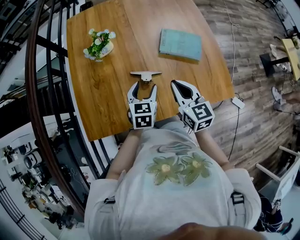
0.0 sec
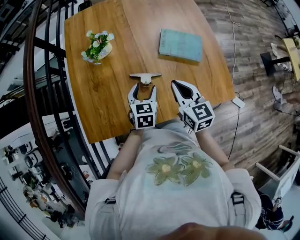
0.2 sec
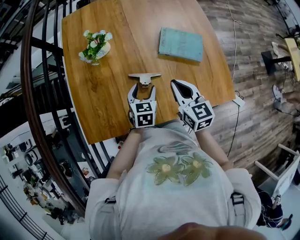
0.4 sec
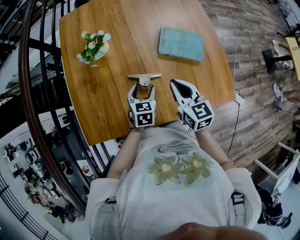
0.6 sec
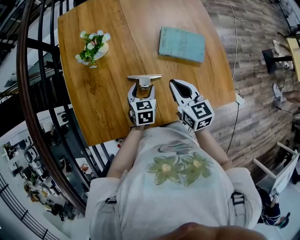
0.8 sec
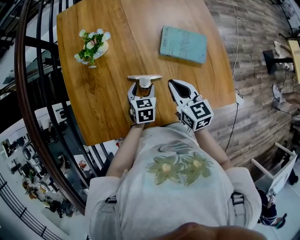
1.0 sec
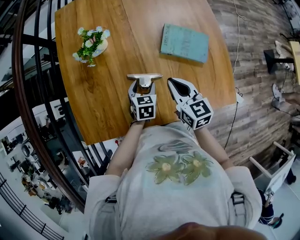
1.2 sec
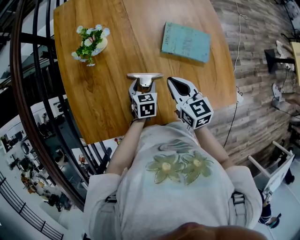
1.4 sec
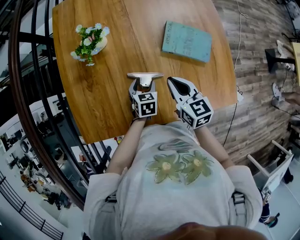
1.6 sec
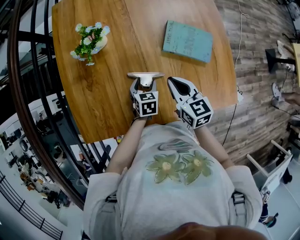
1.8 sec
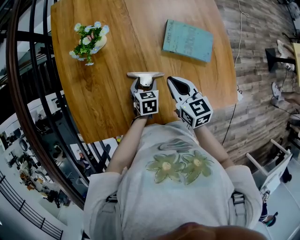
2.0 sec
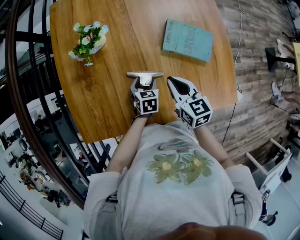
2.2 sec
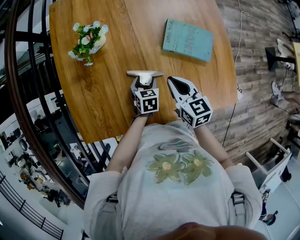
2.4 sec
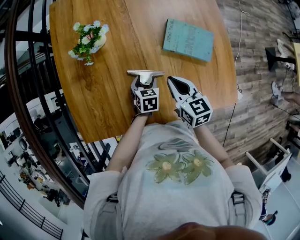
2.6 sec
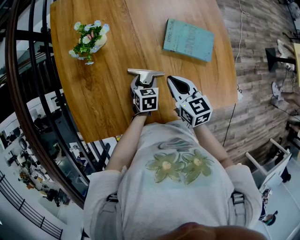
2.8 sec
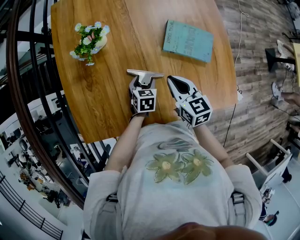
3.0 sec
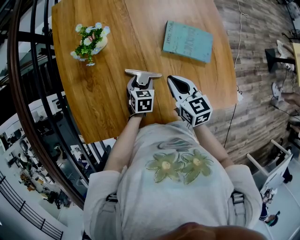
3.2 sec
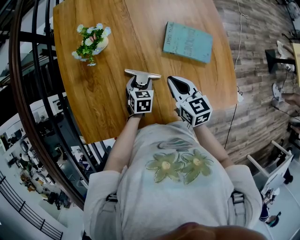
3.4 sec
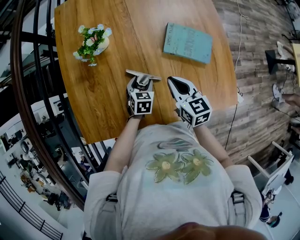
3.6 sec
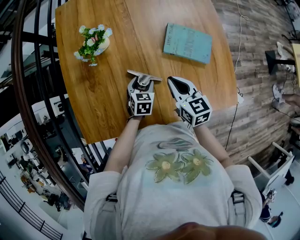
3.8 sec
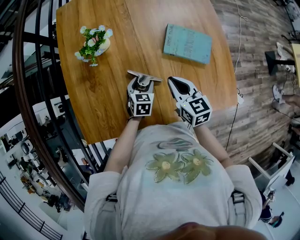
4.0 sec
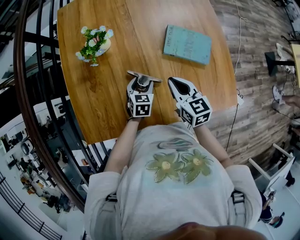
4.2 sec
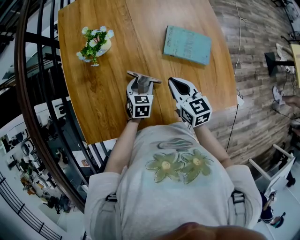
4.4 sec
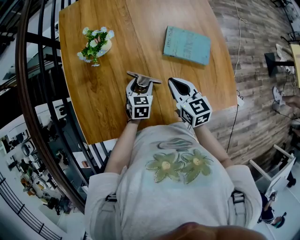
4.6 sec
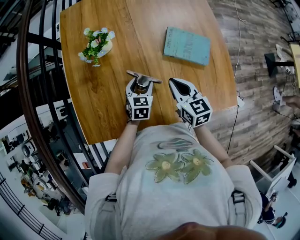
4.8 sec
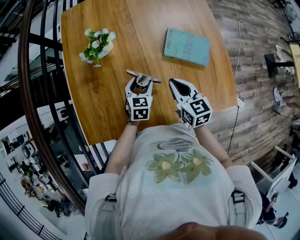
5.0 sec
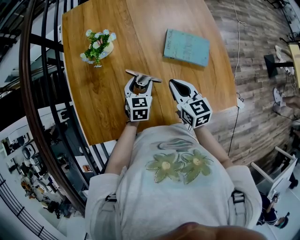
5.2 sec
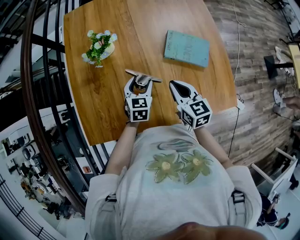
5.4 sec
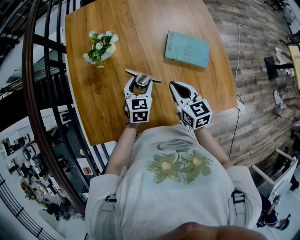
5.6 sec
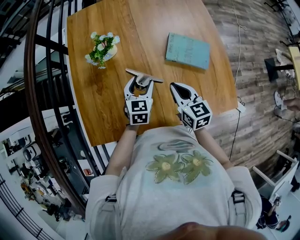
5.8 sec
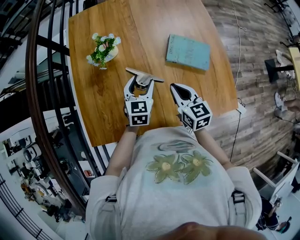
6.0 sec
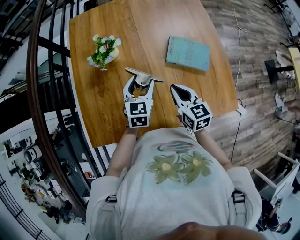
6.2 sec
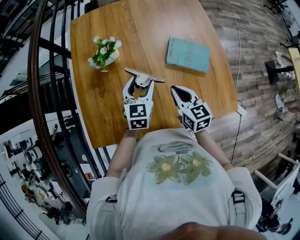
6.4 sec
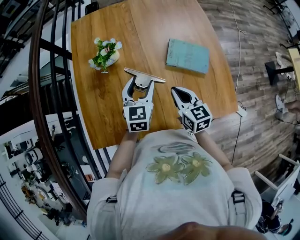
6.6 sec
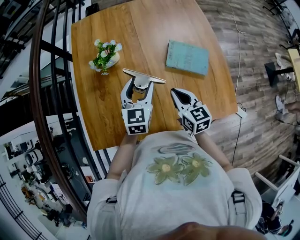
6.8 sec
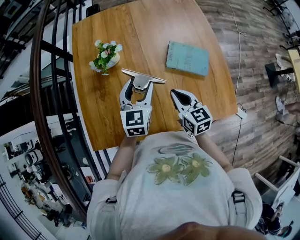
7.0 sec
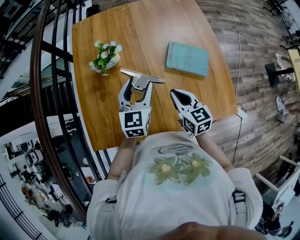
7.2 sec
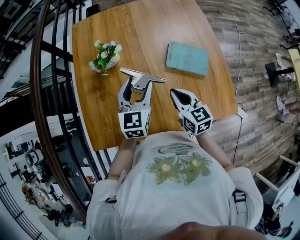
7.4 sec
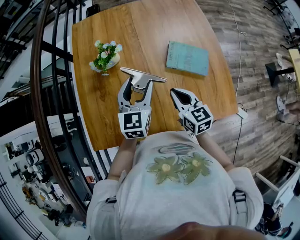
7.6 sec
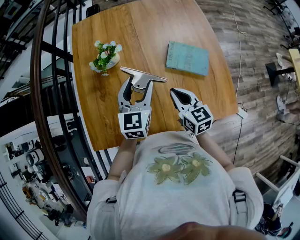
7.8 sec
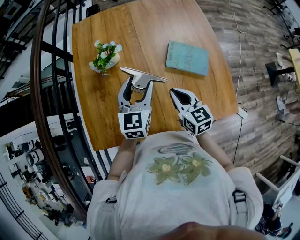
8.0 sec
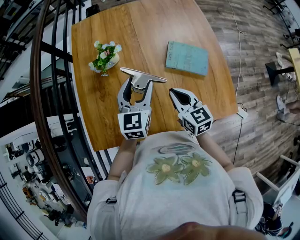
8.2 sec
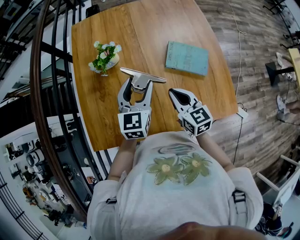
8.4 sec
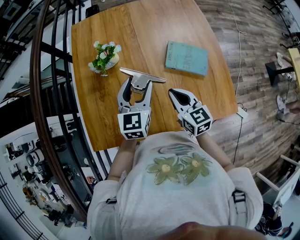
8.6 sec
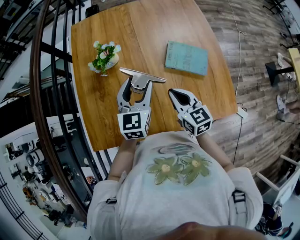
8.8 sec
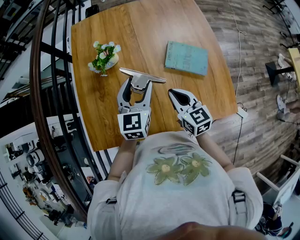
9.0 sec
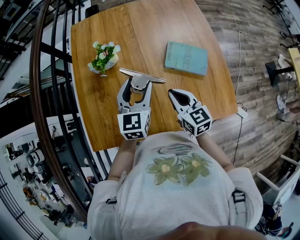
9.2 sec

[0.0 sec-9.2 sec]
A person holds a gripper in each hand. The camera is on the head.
0.0 sec to 1.6 sec: The right gripper moves forward and downward, approximately 10 cm. The left gripper is displaced downward by approximately 15 cm.
1.6 sec to 3.0 sec: The grippers stay close to where they were, moving slightly.
3.0 sec to 4.6 sec: The left gripper is displaced upward by about 5 cm.
4.6 sec to 6.2 sec: The left gripper moves upward, some 15 cm.
6.2 sec to 7.6 sec: The left gripper heads upward, covering approximately 10 cm.
7.6 sec to 9.2 sec: The two grippers keep their place.

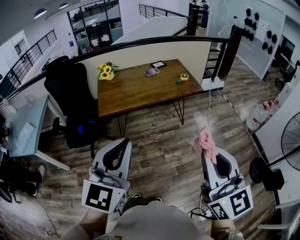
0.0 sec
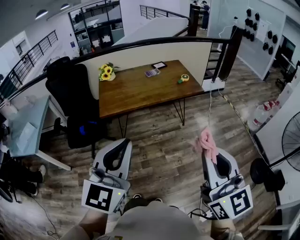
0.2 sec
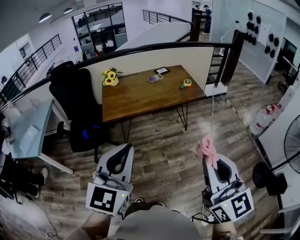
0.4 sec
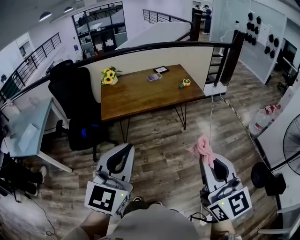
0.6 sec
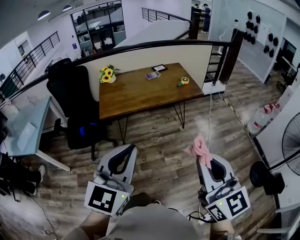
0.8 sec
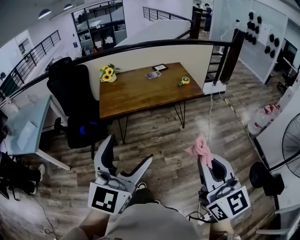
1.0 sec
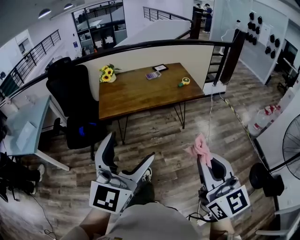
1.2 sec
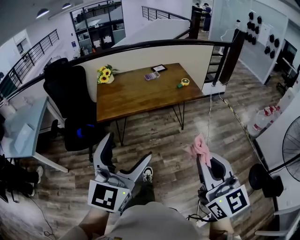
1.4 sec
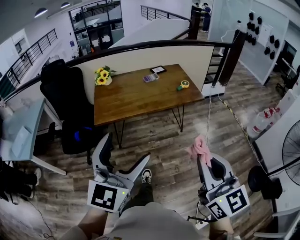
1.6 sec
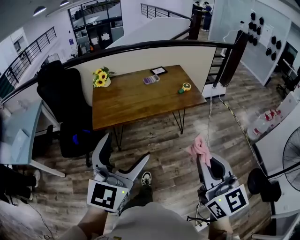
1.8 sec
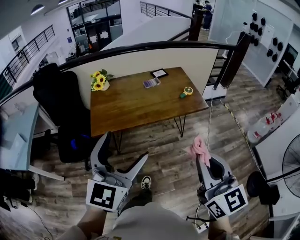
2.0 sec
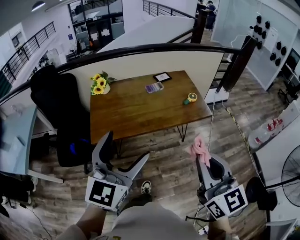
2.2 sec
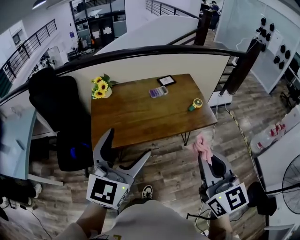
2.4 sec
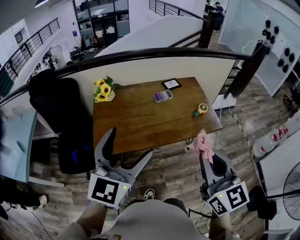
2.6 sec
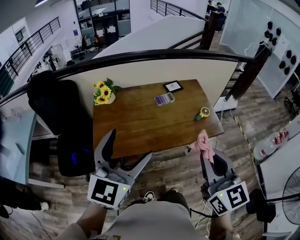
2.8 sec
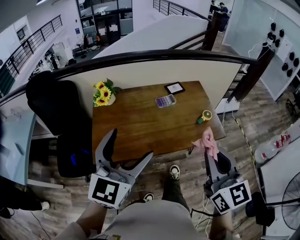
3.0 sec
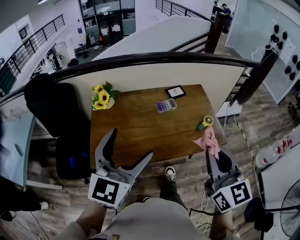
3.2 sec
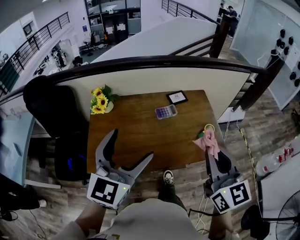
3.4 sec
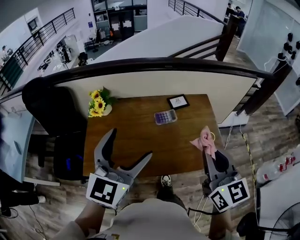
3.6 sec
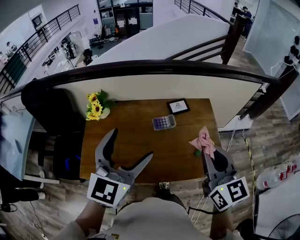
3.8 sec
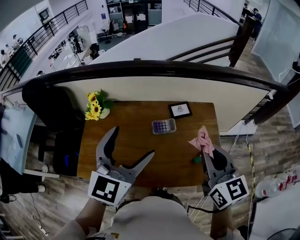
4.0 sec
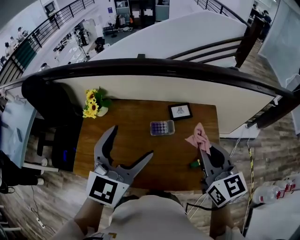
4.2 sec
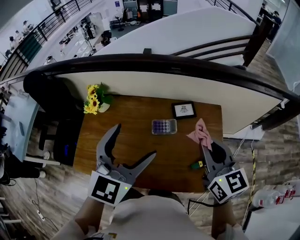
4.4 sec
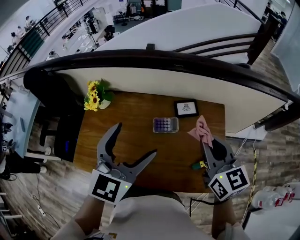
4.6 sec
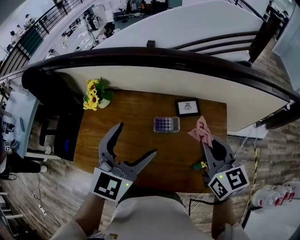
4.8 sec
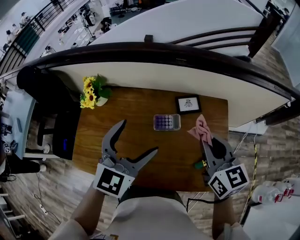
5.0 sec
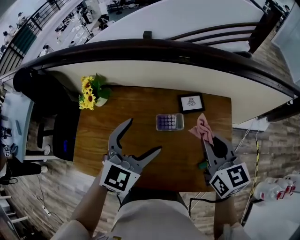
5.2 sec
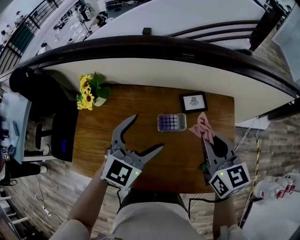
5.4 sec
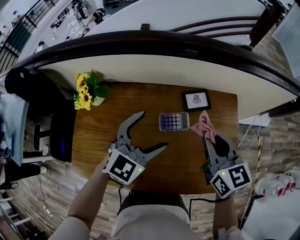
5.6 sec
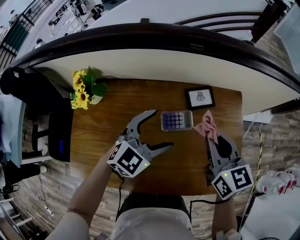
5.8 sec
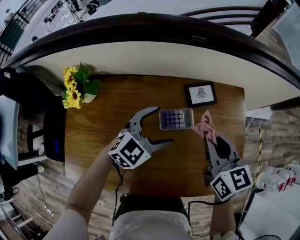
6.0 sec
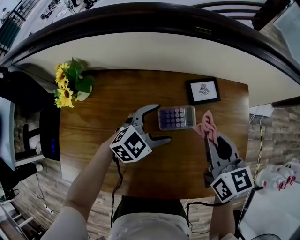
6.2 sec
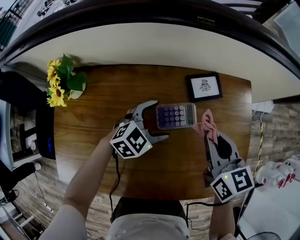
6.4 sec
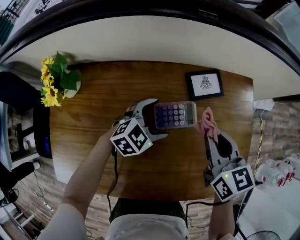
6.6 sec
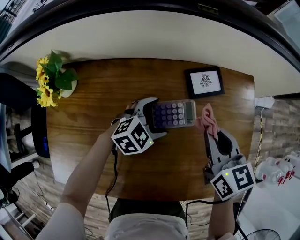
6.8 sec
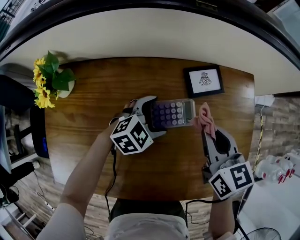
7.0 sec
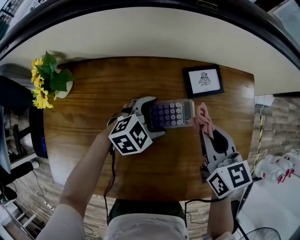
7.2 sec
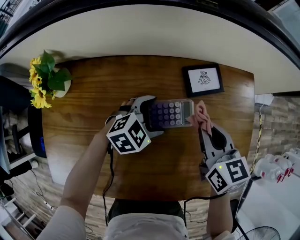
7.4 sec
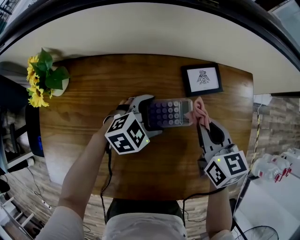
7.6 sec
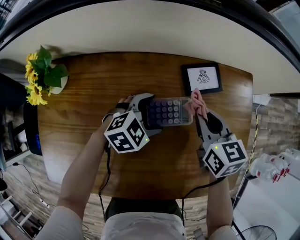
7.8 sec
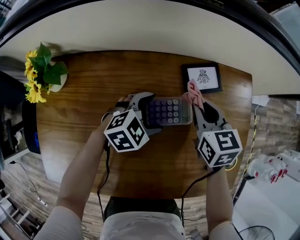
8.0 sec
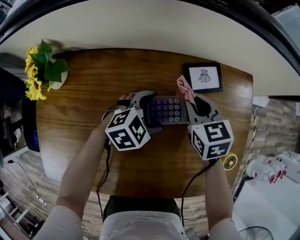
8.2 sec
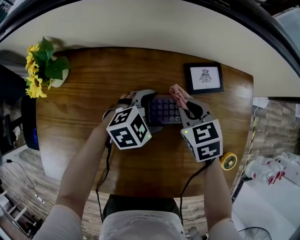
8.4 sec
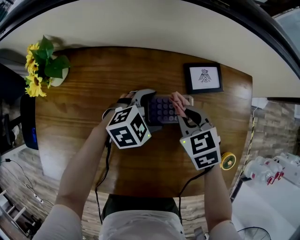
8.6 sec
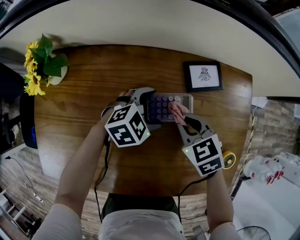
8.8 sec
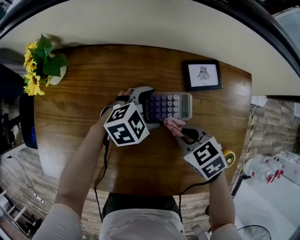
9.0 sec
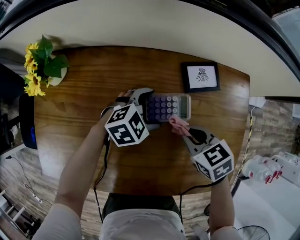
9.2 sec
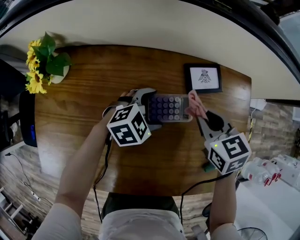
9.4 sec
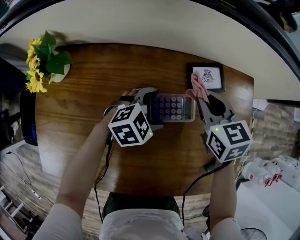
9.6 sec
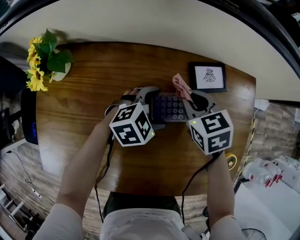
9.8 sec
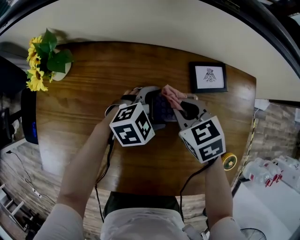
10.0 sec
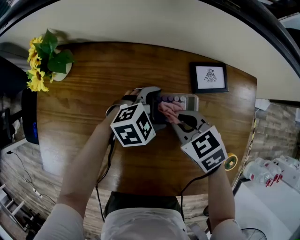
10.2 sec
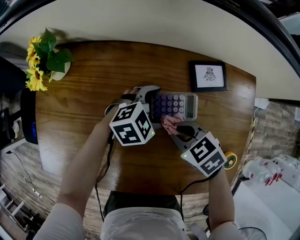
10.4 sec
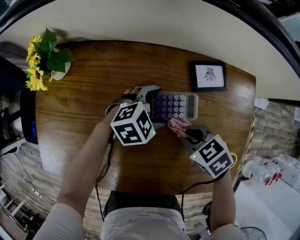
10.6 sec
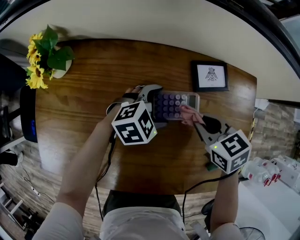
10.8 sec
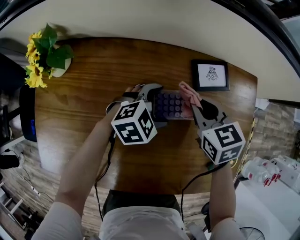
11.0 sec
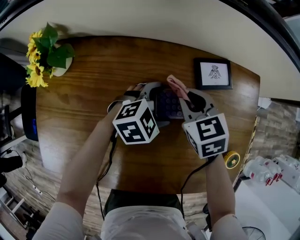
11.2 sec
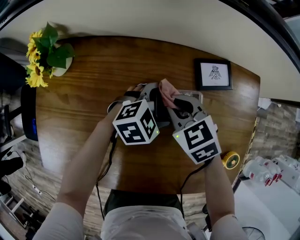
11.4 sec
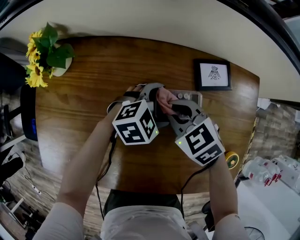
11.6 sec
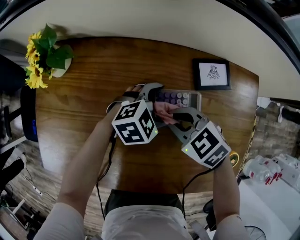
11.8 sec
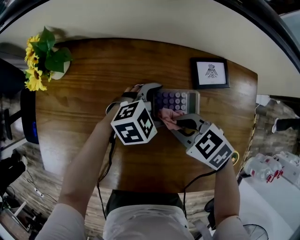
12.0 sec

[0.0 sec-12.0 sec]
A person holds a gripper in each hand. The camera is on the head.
0.0 sec to 1.6 sec: Both grippers move forward, approximately 10 cm. The left gripper opens up.
1.6 sec to 3.0 sec: The two grippers travel together, forward, approximately 40 cm.
3.0 sec to 4.4 sec: The right gripper shifts roughly 40 cm forward, and changes its angle by about 20 degrees. Meanwhile the left gripper is displaced forward and to the right by about 35 cm.
4.4 sec to 6.0 sec: The left gripper shifts some 35 cm downward and forward, and swivels roughly 40 degrees. The right gripper shifts approximately 20 cm downward and forward.
6.0 sec to 7.6 sec: The two grippers go approximately 15 cm downward. The left gripper rotates approximately 20 degrees.
7.6 sec to 9.0 sec: The right gripper changes place by about 10 cm, and swivels approximately 40 degrees.

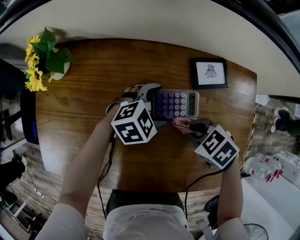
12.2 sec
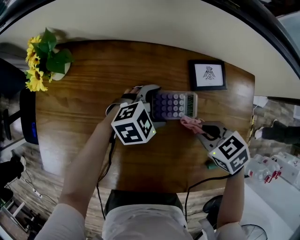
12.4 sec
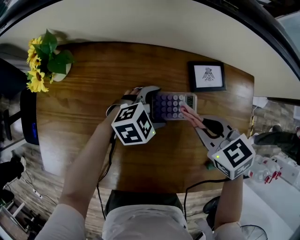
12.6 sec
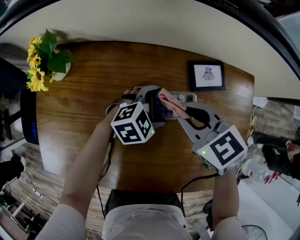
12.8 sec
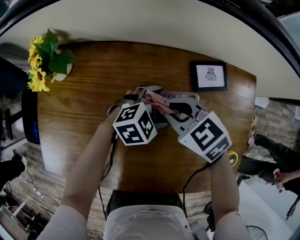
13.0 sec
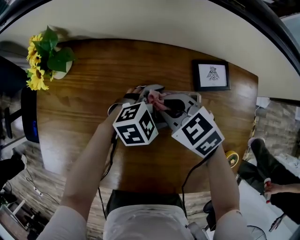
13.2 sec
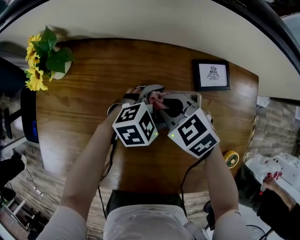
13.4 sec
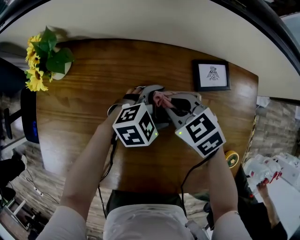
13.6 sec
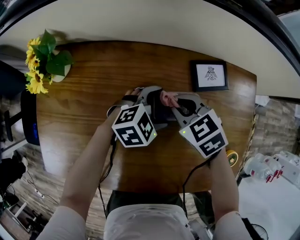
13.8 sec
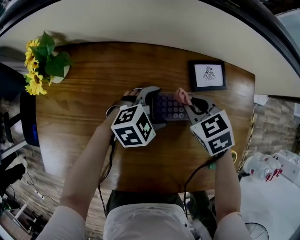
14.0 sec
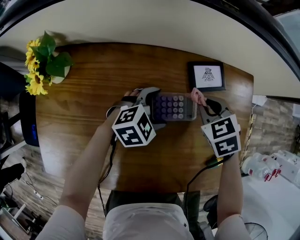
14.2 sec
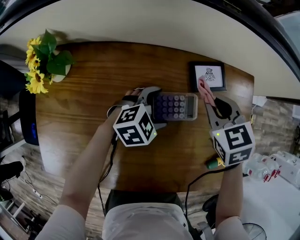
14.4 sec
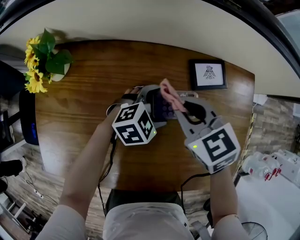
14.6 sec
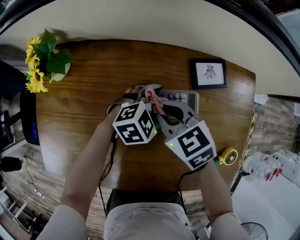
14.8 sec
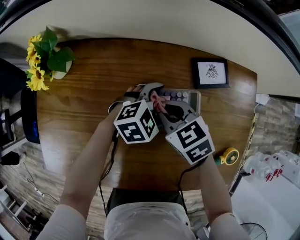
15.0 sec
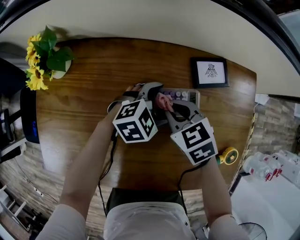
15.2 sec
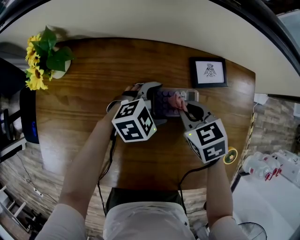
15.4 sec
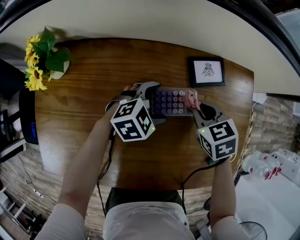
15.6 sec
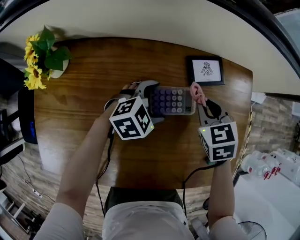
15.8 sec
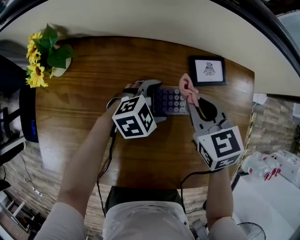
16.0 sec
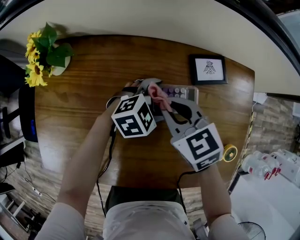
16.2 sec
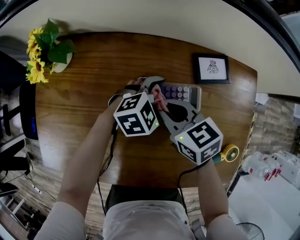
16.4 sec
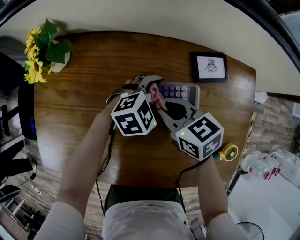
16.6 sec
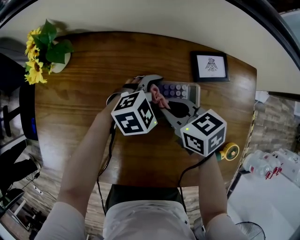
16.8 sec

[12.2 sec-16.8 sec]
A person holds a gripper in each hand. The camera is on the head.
12.2 sec to 13.8 sec: The right gripper travels upward and back again, approximately 10 cm each way, and changes its angle by some 20 degrees.
13.8 sec to 15.2 sec: The right gripper reaches about 10 cm to the right, then returns.
15.2 sec to 16.8 sec: The right gripper changes its angle by roughly 20 degrees.
